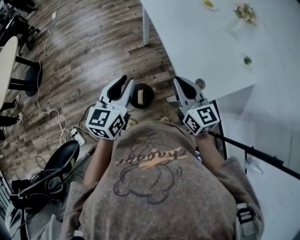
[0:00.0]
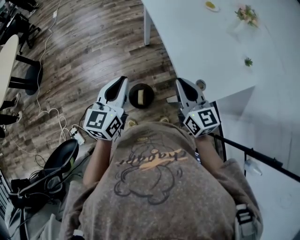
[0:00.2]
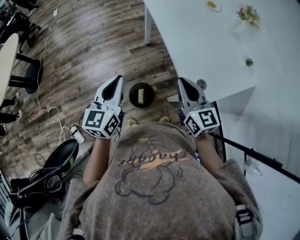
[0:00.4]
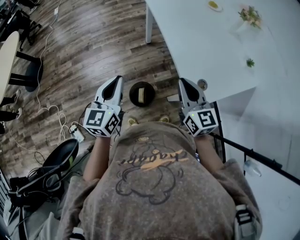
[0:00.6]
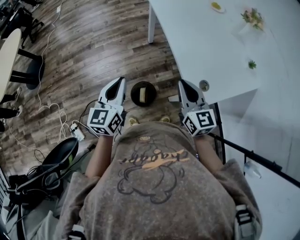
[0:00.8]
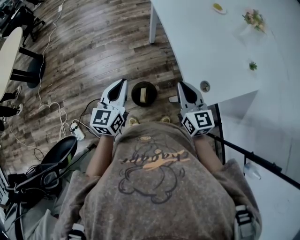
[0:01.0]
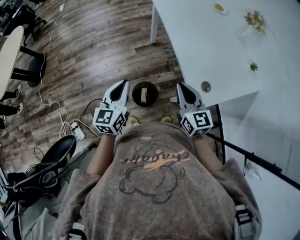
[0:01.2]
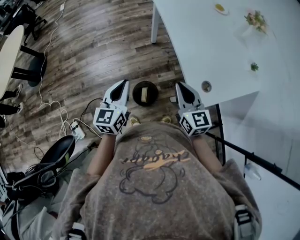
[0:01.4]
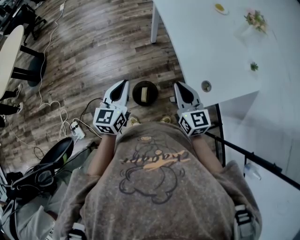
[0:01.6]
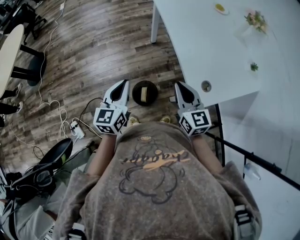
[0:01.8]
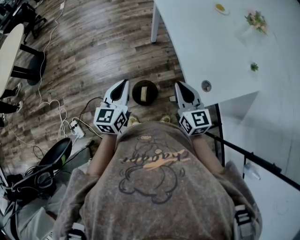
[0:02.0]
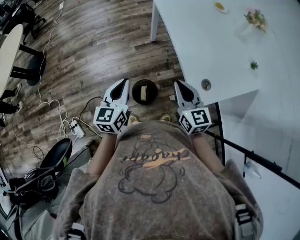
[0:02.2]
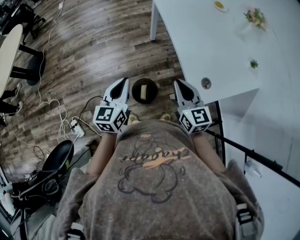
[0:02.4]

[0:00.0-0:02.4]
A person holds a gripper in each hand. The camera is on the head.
0:00.0 to 0:01.2: The grippers both shift downward by approximately 5 cm. The left gripper closes.
0:01.2 to 0:02.4: Neither gripper changes place.

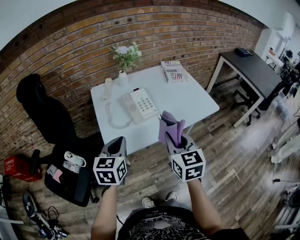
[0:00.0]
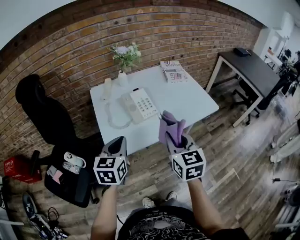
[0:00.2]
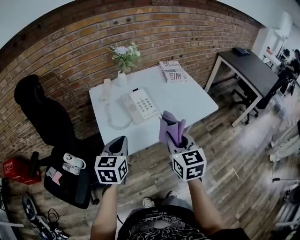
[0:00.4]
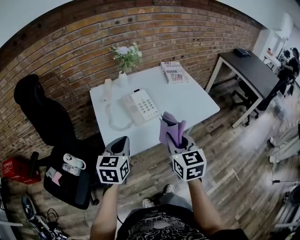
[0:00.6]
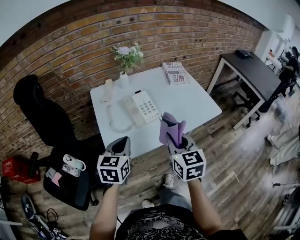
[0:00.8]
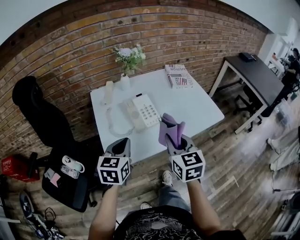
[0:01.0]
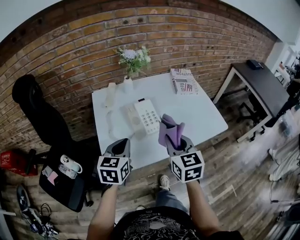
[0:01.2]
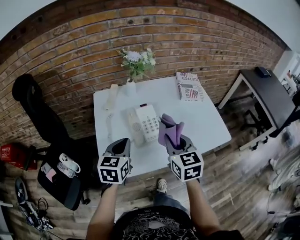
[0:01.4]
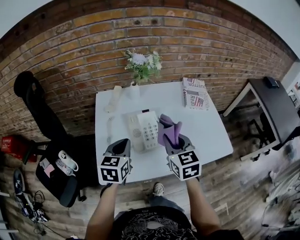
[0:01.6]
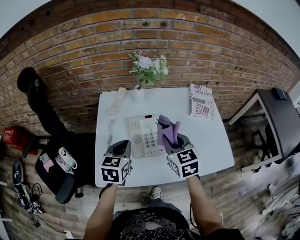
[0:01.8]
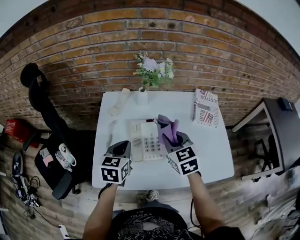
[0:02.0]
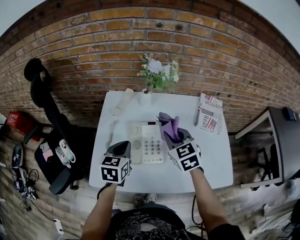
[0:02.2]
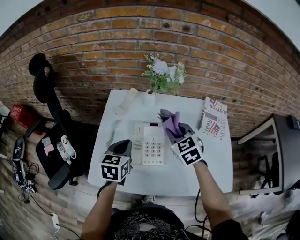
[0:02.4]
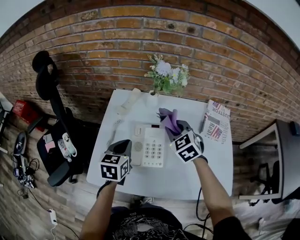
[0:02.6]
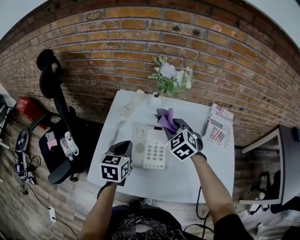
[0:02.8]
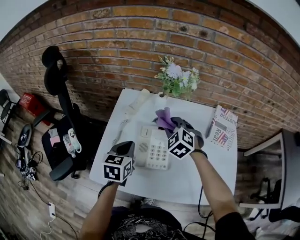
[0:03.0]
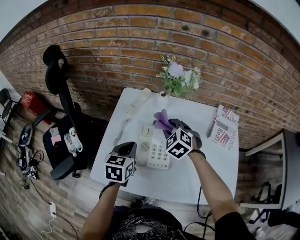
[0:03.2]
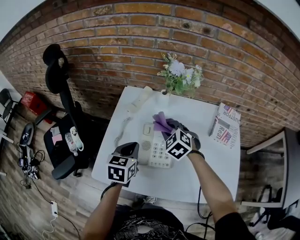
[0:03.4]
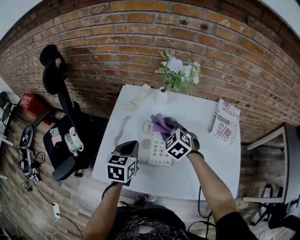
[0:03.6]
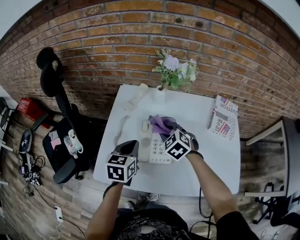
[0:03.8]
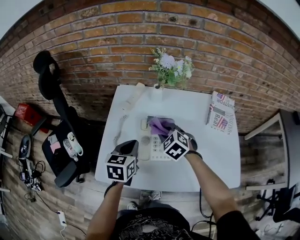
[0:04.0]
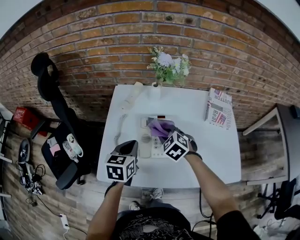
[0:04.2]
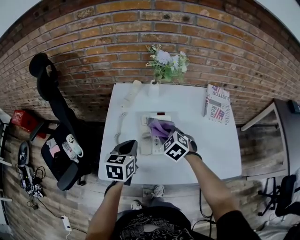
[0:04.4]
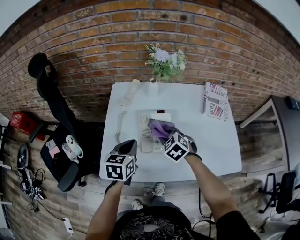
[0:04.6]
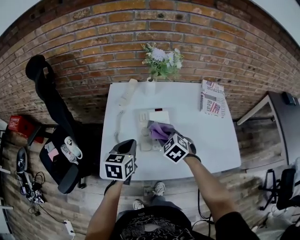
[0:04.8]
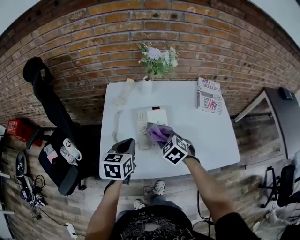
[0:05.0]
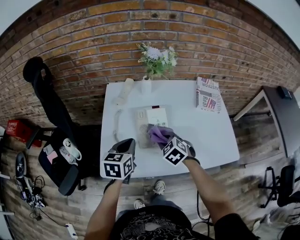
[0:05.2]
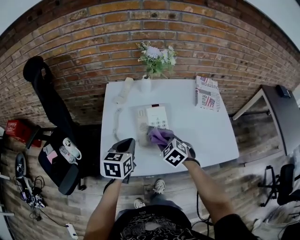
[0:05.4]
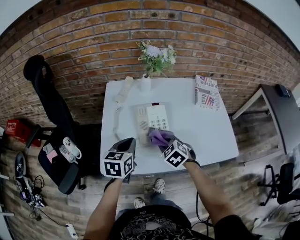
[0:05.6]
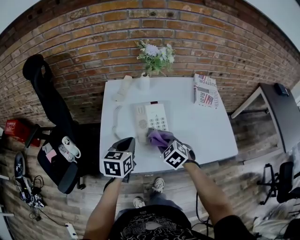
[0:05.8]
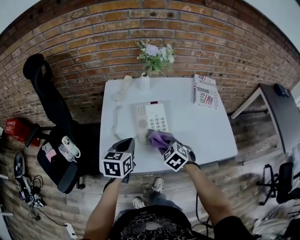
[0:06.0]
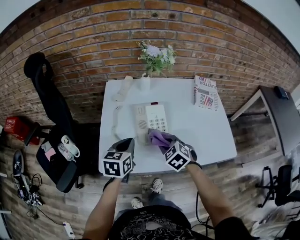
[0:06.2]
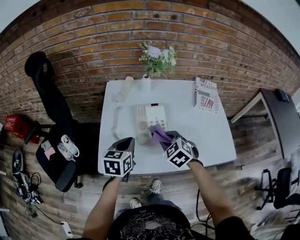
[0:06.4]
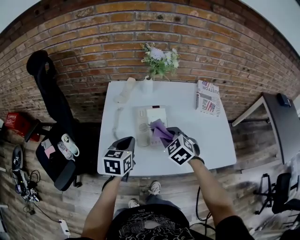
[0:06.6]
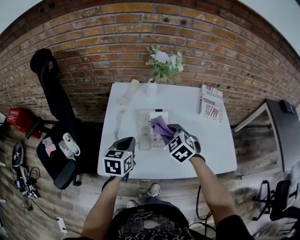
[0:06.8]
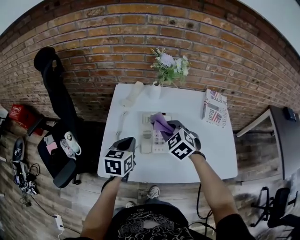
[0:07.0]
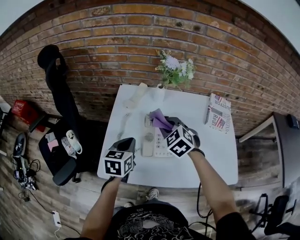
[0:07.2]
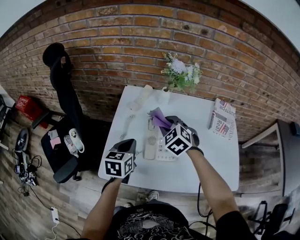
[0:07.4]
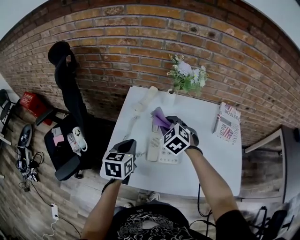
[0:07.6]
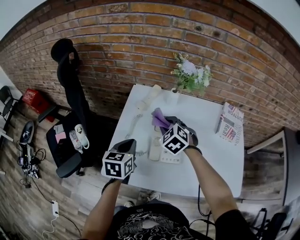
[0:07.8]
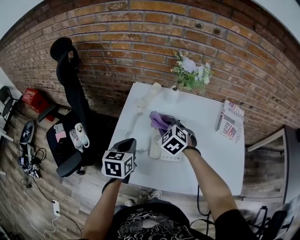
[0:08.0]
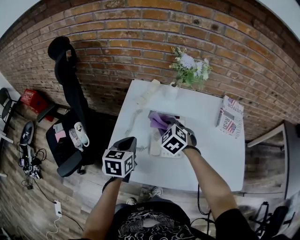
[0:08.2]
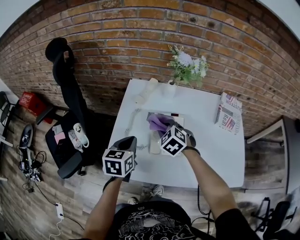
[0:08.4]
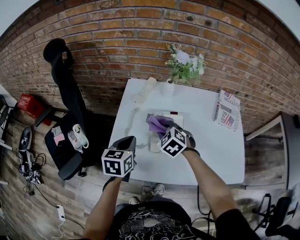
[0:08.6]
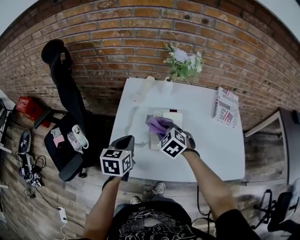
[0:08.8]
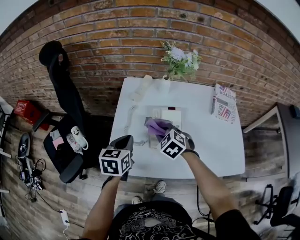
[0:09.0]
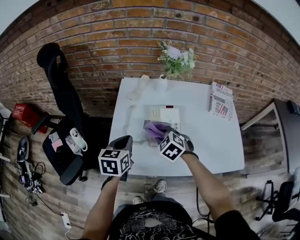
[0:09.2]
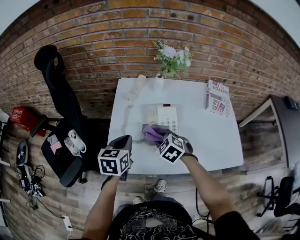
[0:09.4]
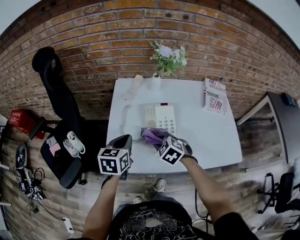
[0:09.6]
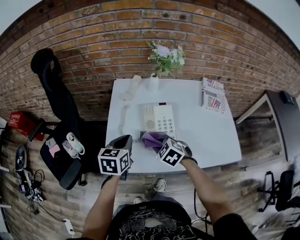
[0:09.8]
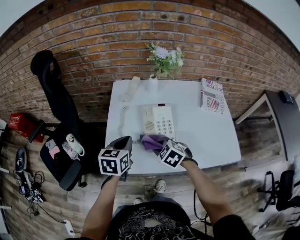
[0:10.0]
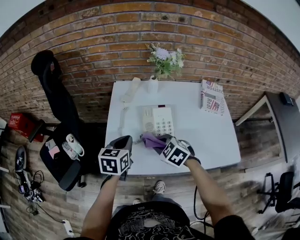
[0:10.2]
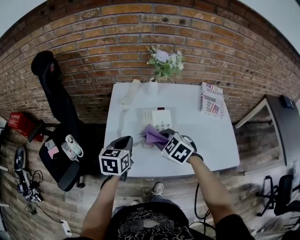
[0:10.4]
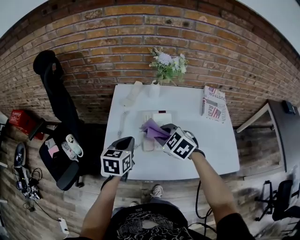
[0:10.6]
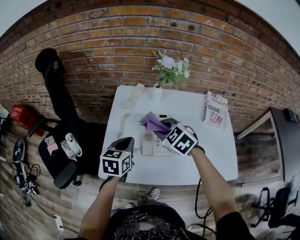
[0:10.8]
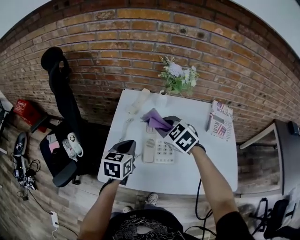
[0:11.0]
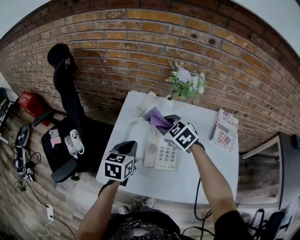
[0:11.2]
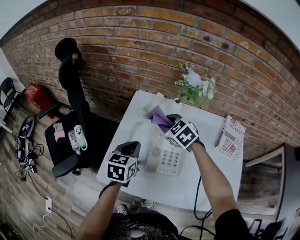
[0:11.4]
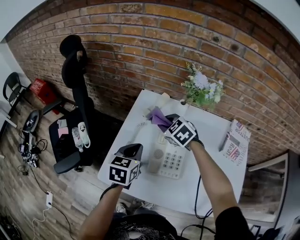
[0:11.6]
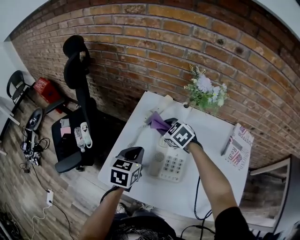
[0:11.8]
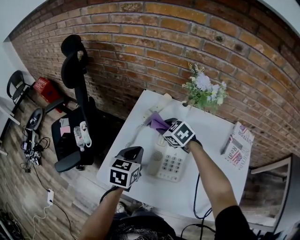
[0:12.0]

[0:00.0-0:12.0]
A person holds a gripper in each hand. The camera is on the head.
0:00.0 to 0:01.6: The grippers both shift forward by roughly 20 cm.
0:01.6 to 0:03.0: The right gripper shifts about 20 cm forward, and rolls counterclockwise, seen from behind, by roughly 50 degrees. Meanwhile the left gripper moves forward, some 5 cm.
0:03.0 to 0:04.4: The right gripper heads backward and downward, covering approximately 10 cm.
0:04.4 to 0:06.0: The left gripper travels backward by approximately 5 cm. Meanwhile the right gripper shifts some 10 cm backward.
0:06.0 to 0:07.6: The right gripper shifts about 20 cm forward and upward. The left gripper travels forward by approximately 5 cm.
0:07.6 to 0:09.0: The right gripper moves backward and downward, some 10 cm.
0:09.0 to 0:10.4: The right gripper is displaced backward by roughly 5 cm.
0:10.4 to 0:12.0: The left gripper moves forward, approximately 5 cm, while the right gripper shifts approximately 20 cm forward.

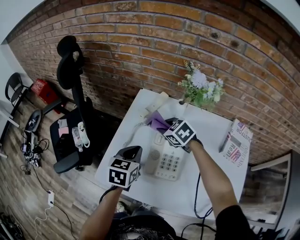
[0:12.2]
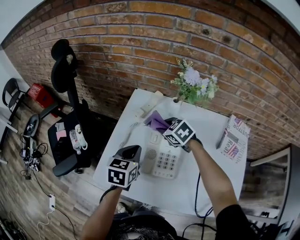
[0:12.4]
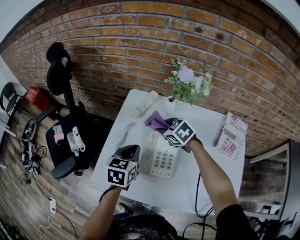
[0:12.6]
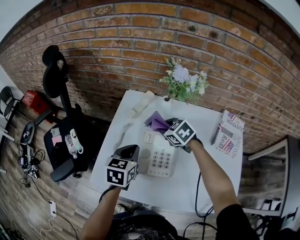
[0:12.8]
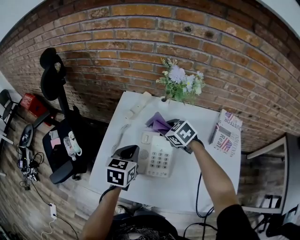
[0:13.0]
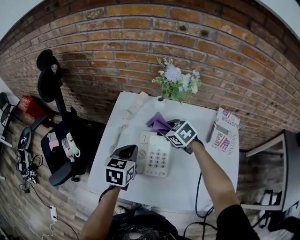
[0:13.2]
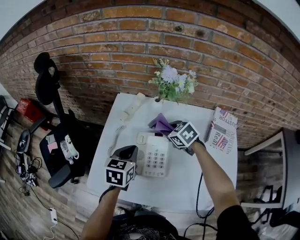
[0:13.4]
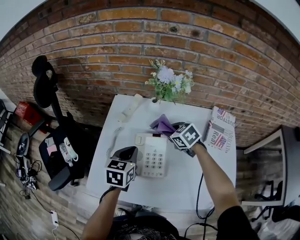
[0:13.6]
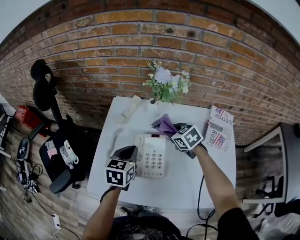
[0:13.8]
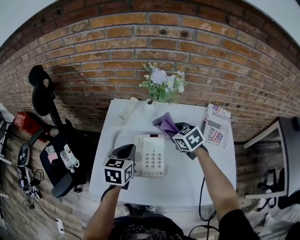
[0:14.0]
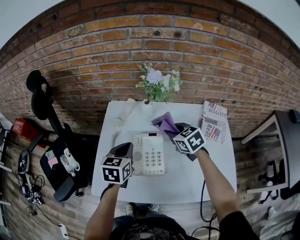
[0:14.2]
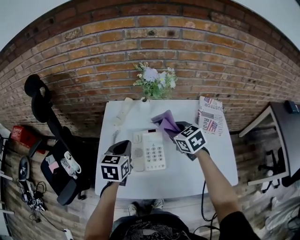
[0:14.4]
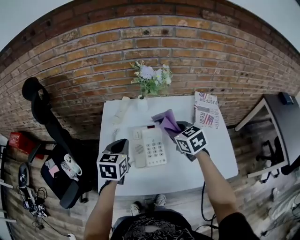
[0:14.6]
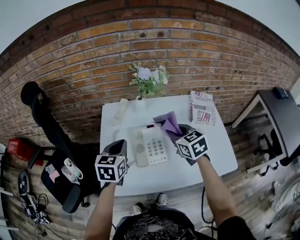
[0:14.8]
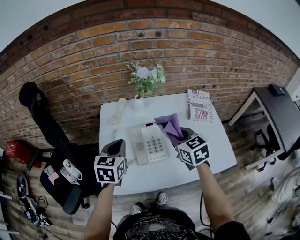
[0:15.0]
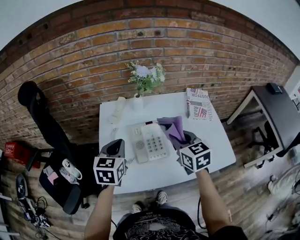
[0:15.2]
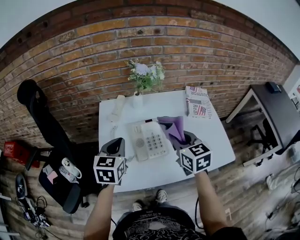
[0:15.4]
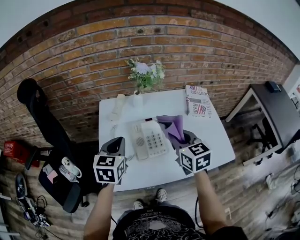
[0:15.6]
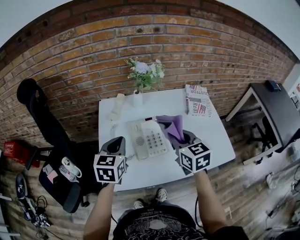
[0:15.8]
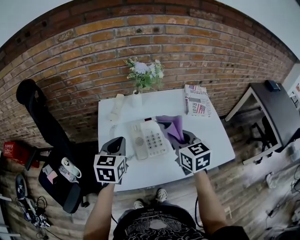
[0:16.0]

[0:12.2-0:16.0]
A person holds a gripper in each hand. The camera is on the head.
0:12.2 to 0:13.4: The right gripper heads to the right, covering about 10 cm; the left gripper is displaced to the right by some 5 cm.
0:13.4 to 0:14.8: The left gripper shifts roughly 5 cm upward, while the right gripper goes approximately 15 cm backward and upward, and turns by about 40 degrees.
0:14.8 to 0:16.0: The right gripper travels backward by some 5 cm.

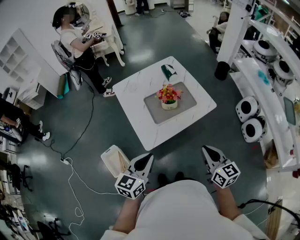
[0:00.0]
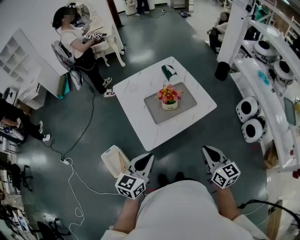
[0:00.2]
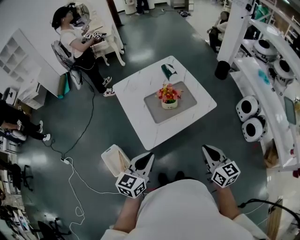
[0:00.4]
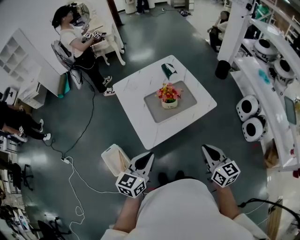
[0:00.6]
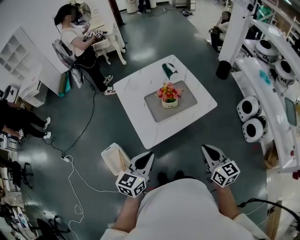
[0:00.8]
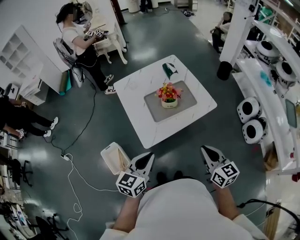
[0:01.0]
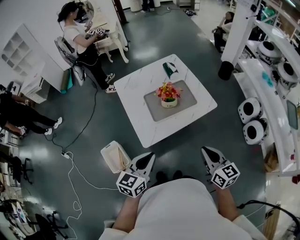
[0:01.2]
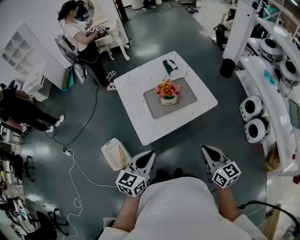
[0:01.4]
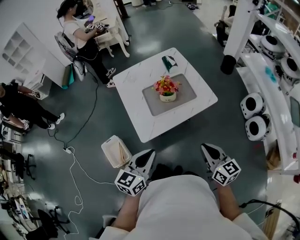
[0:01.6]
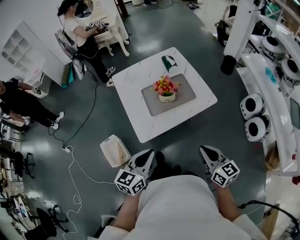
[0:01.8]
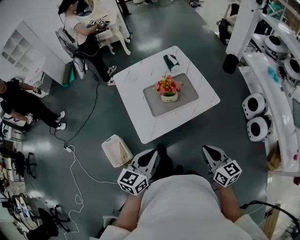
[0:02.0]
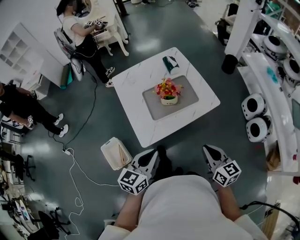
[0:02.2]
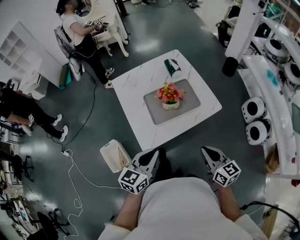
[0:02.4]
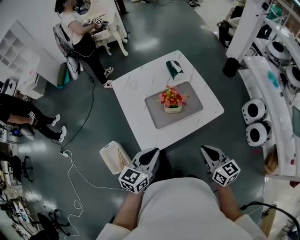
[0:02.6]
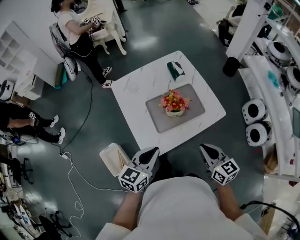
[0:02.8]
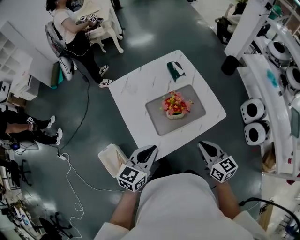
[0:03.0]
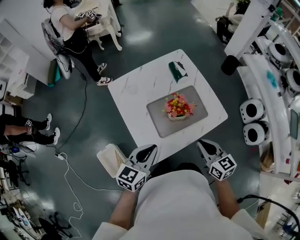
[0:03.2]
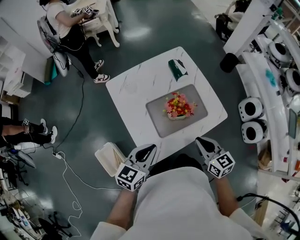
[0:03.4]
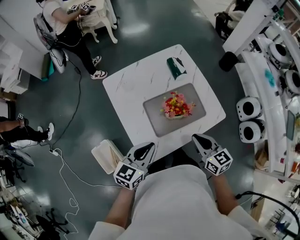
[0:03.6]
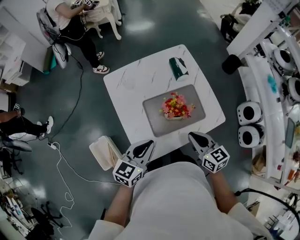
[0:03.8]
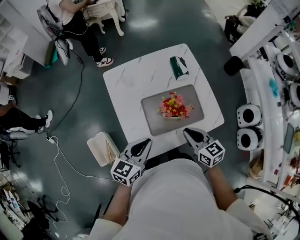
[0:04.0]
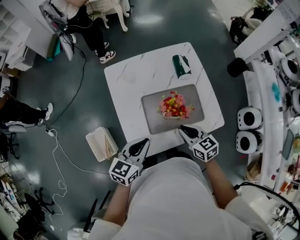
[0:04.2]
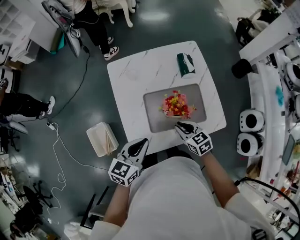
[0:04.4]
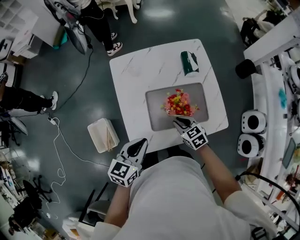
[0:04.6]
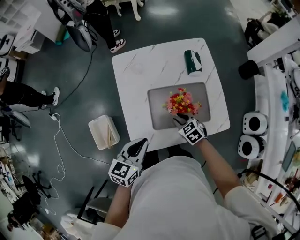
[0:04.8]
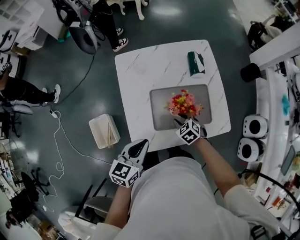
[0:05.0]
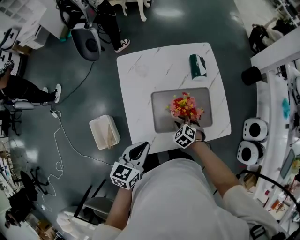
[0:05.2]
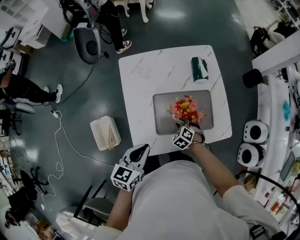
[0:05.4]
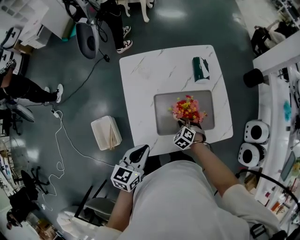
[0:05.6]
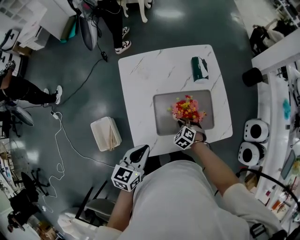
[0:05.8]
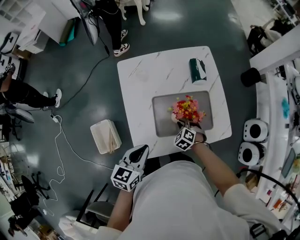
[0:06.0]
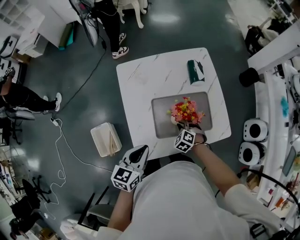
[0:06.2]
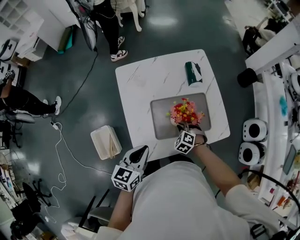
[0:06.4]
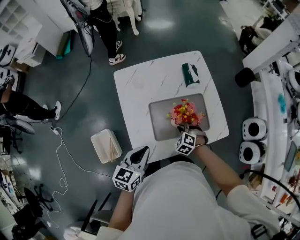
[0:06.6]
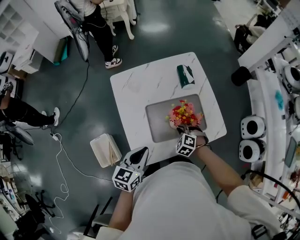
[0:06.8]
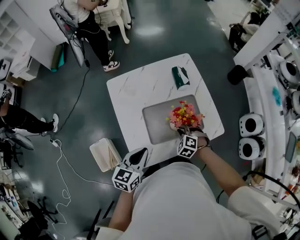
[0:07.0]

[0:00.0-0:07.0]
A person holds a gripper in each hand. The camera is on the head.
0:00.0 to 0:01.4: The grippers move only a little.
0:01.4 to 0:02.8: Both grippers travel together forward, about 15 cm.
0:02.8 to 0:04.2: The right gripper goes roughly 20 cm forward and downward, and turns by about 20 degrees, while the left gripper moves forward, some 10 cm.
0:04.2 to 0:05.6: The right gripper heads downward, covering roughly 15 cm, and angles its fingers downward, by about 30 degrees.
0:05.6 to 0:07.0: The right gripper shifts approximately 10 cm upward.
